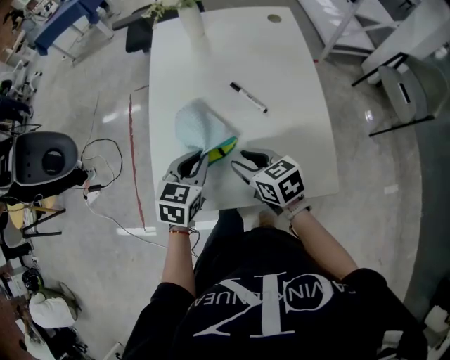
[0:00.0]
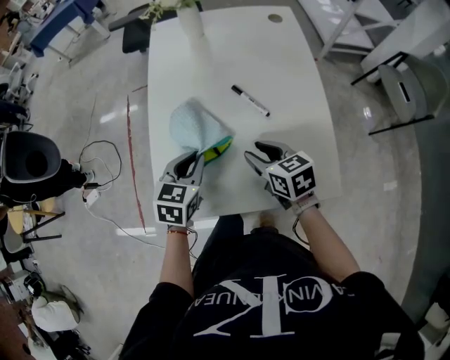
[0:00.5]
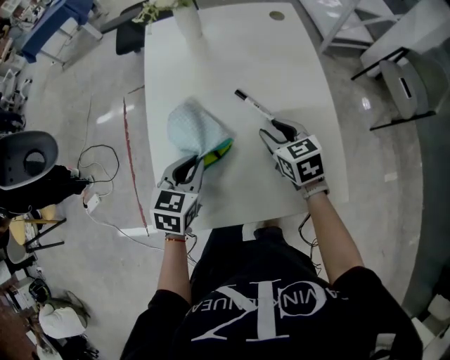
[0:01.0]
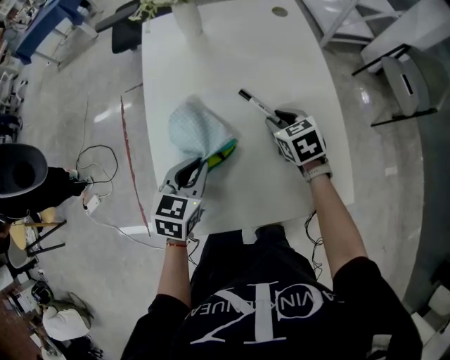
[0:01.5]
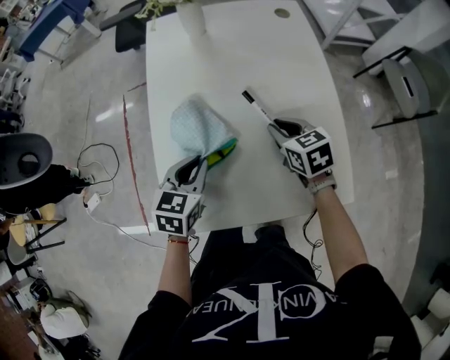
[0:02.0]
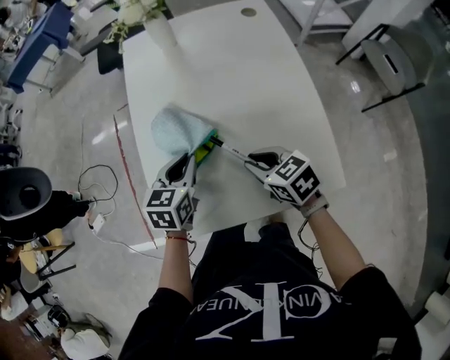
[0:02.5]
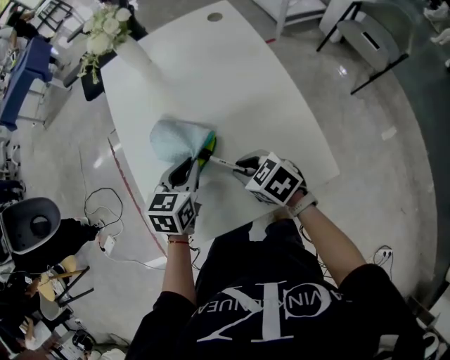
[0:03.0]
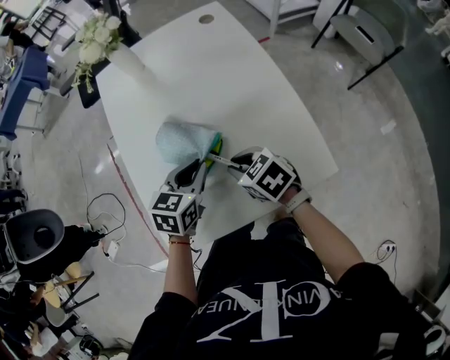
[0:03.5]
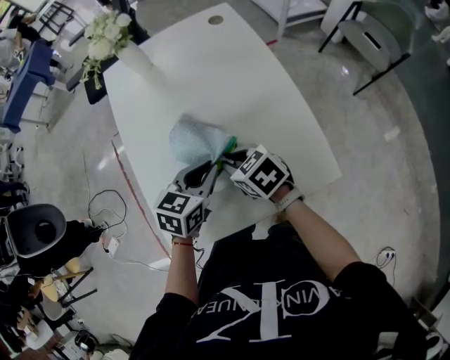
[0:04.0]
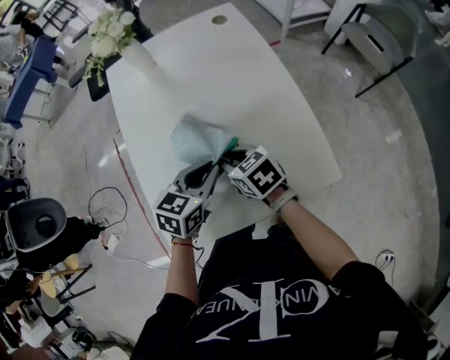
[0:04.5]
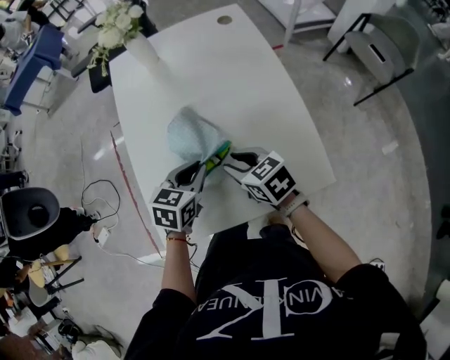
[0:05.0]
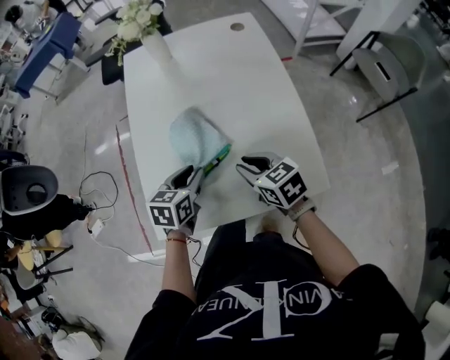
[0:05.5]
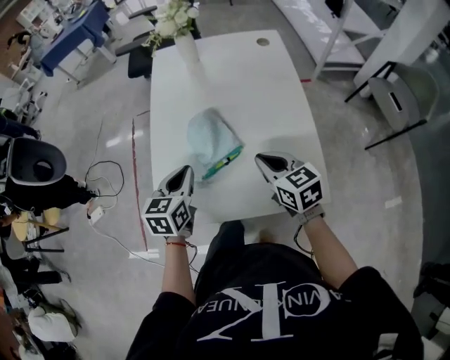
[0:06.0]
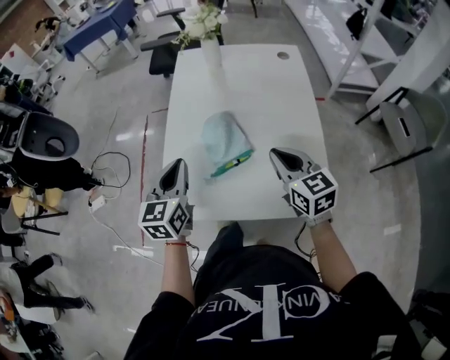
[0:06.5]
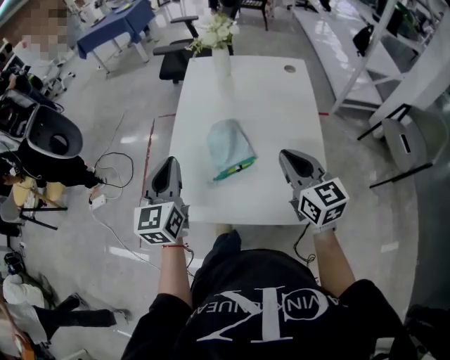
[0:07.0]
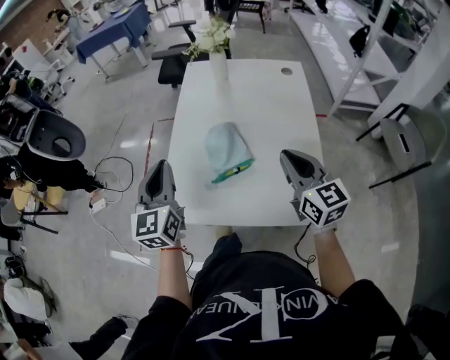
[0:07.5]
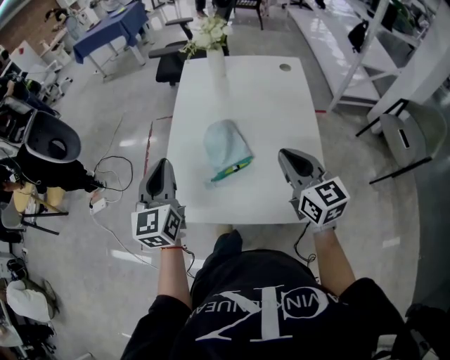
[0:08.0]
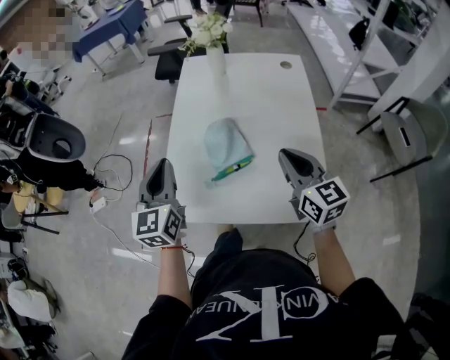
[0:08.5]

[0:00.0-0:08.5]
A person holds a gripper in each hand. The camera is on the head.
0:00.0 to 0:02.0: The left gripper moves roughly 5 cm. The right gripper shifts roughly 15 cm forward and to the right, and closes.
0:02.0 to 0:04.0: The right gripper moves backward and to the left, about 10 cm; the left gripper goes roughly 10 cm to the right, and rotates about 20 degrees.
0:04.0 to 0:06.5: The right gripper goes approximately 15 cm upward and to the right, and swivels roughly 30 degrees. The left gripper is displaced to the left and upward by some 15 cm, and rotates roughly 50 degrees.
0:06.5 to 0:08.5: The left gripper travels upward by approximately 5 cm, while the right gripper changes place by some 5 cm.

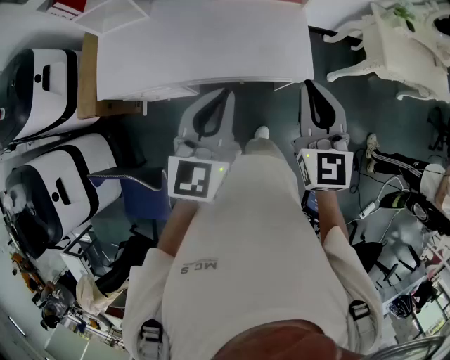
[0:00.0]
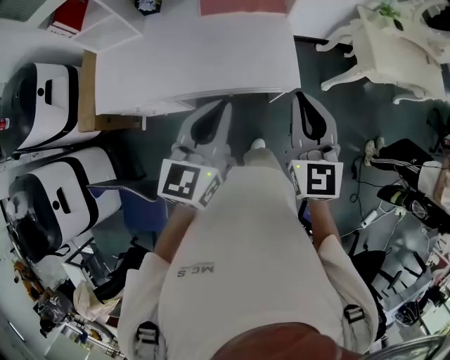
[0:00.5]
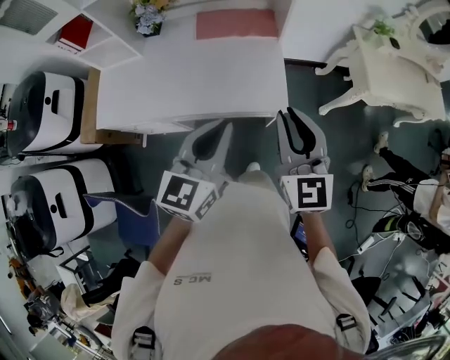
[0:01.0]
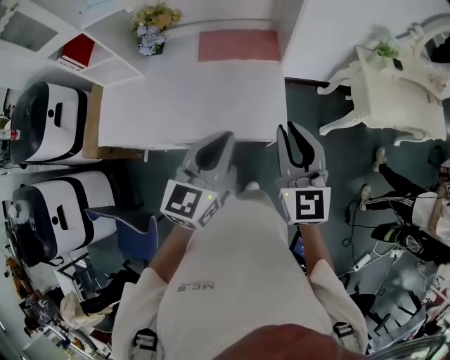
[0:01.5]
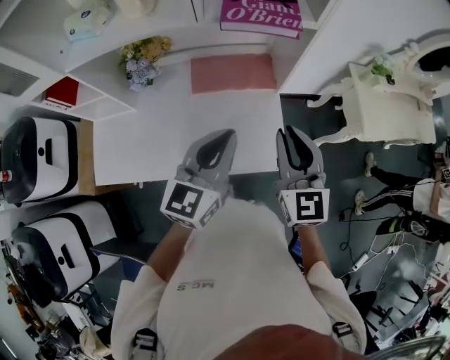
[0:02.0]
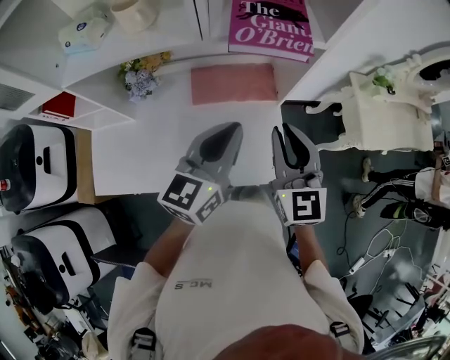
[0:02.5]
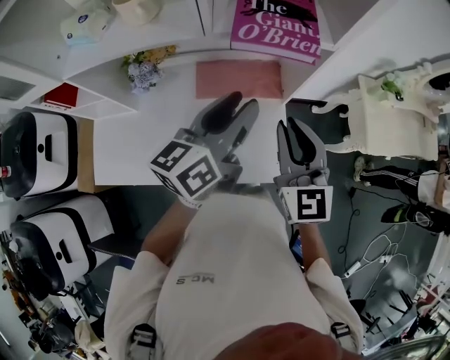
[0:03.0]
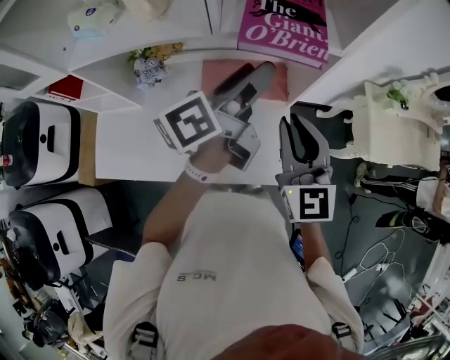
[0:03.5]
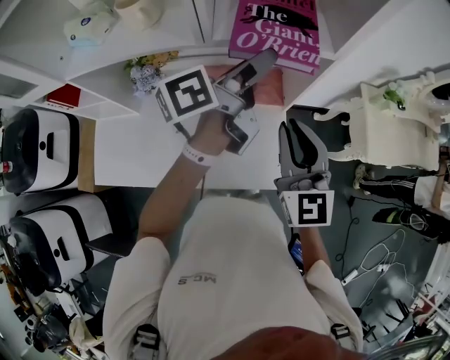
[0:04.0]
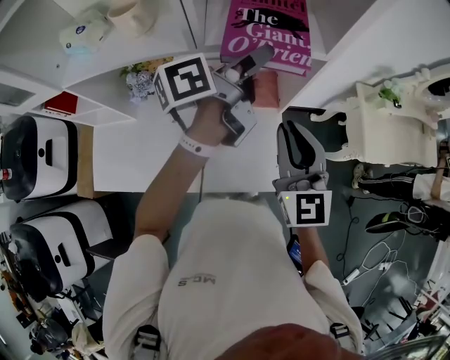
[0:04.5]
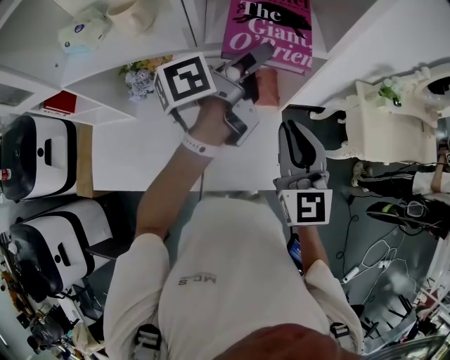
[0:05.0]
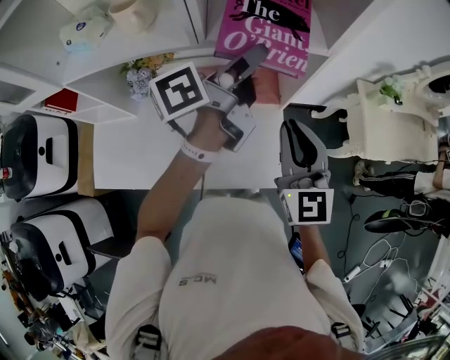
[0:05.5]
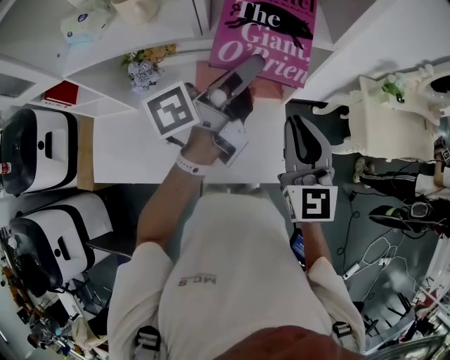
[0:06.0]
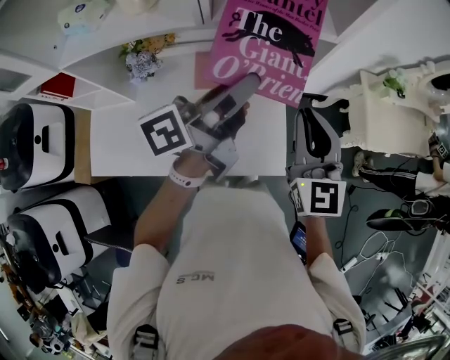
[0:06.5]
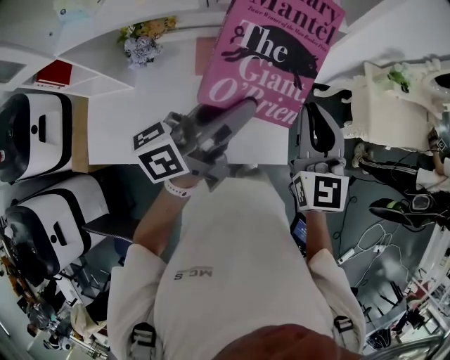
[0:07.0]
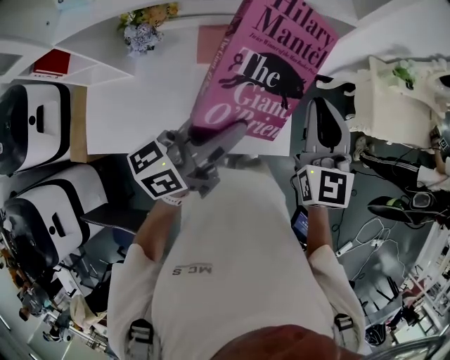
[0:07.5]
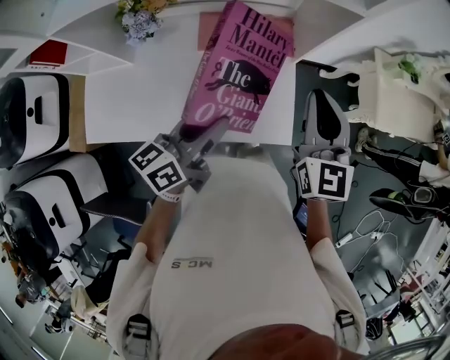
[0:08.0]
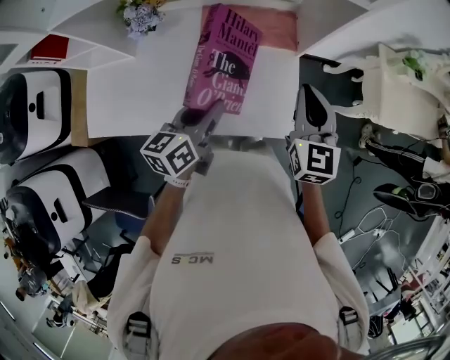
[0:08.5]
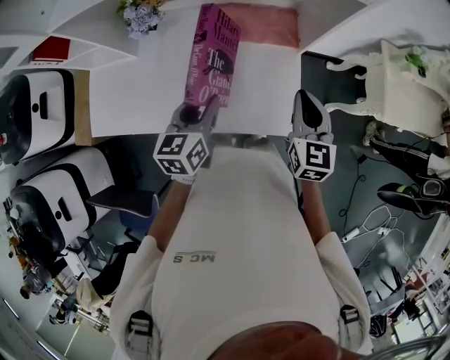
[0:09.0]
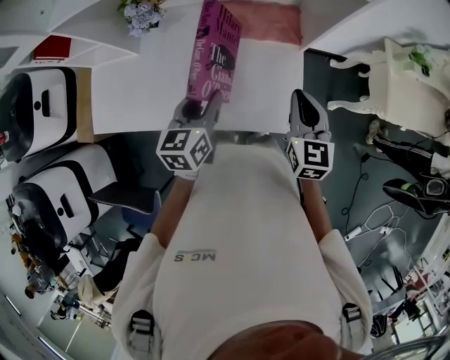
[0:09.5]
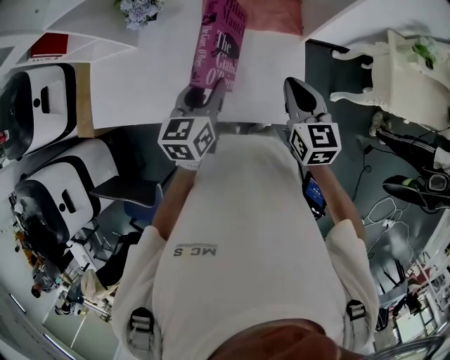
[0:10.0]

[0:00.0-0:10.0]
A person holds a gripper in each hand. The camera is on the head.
0:00.0 to 0:02.0: The two grippers go about 25 cm forward.
0:02.0 to 0:04.0: The left gripper travels forward by approximately 25 cm, rolls counterclockwise, seen from behind, by roughly 50 degrees, and opens; the right gripper is displaced forward by some 10 cm.
0:04.0 to 0:06.0: The left gripper closes up.
0:06.0 to 0:08.0: The left gripper travels backward and downward by approximately 25 cm, and swivels approximately 30 degrees; the right gripper changes place by approximately 5 cm.
0:08.0 to 0:10.0: The left gripper moves downward, some 10 cm, and turns by approximately 40 degrees. Meanwhile the right gripper moves downward, about 15 cm, and rotates roughly 20 degrees.

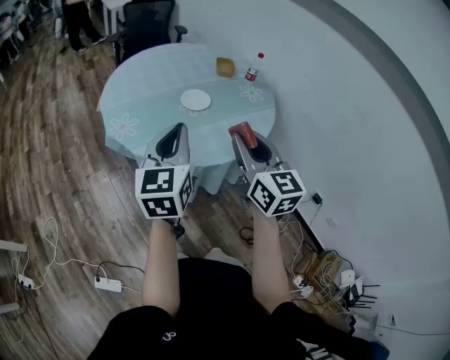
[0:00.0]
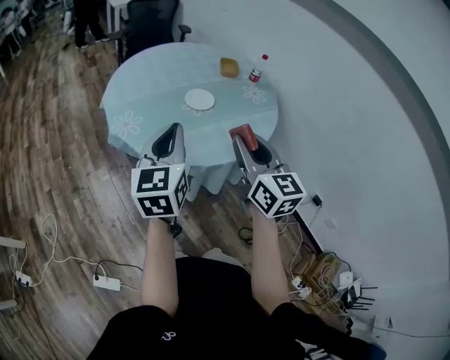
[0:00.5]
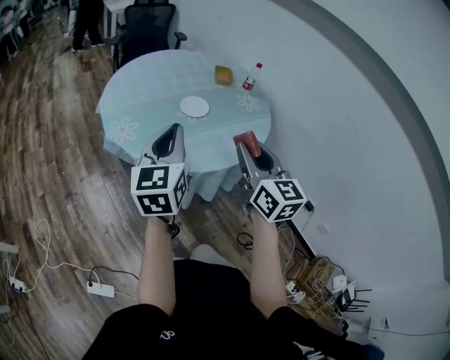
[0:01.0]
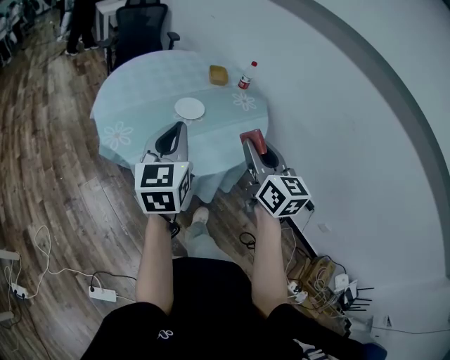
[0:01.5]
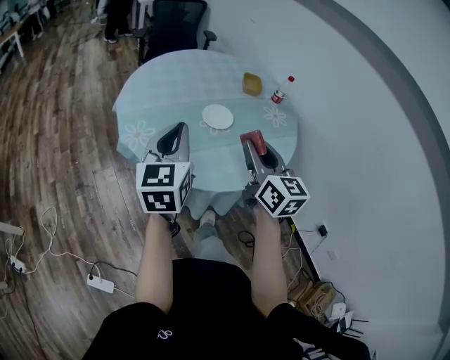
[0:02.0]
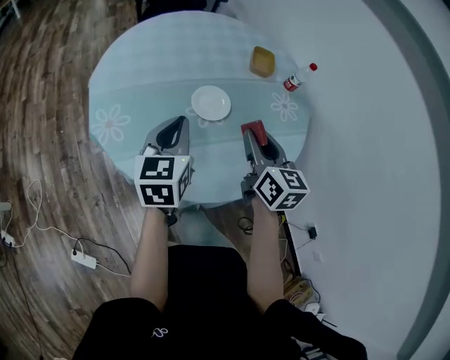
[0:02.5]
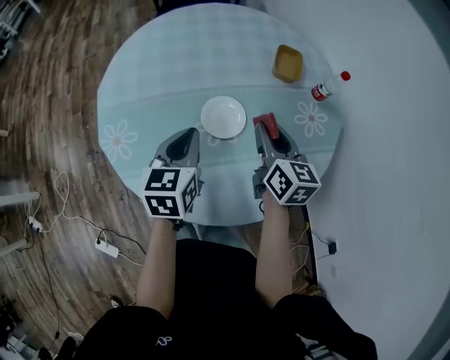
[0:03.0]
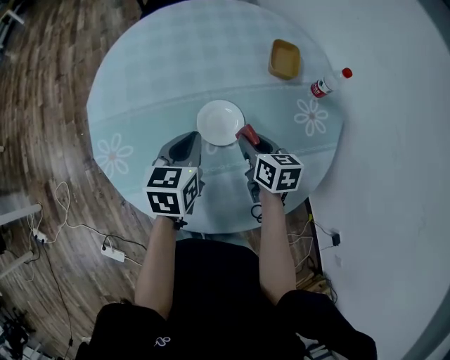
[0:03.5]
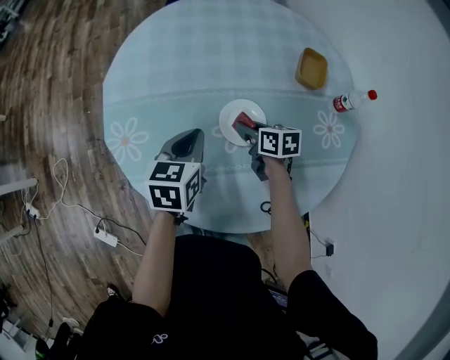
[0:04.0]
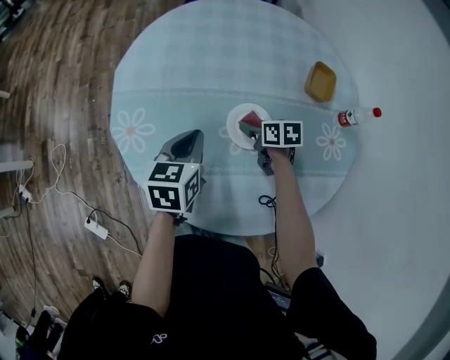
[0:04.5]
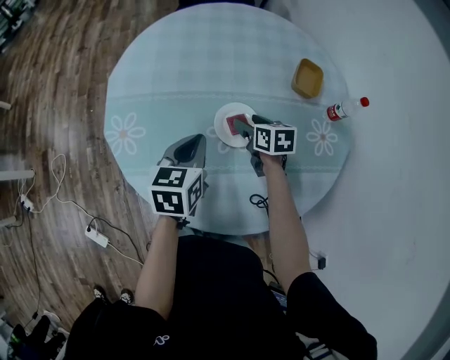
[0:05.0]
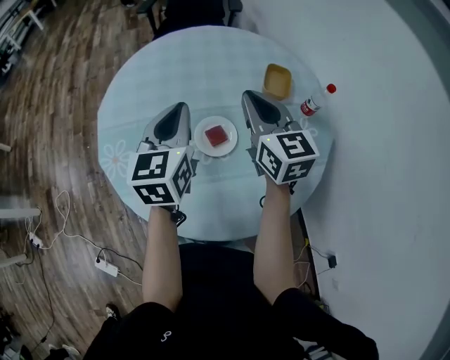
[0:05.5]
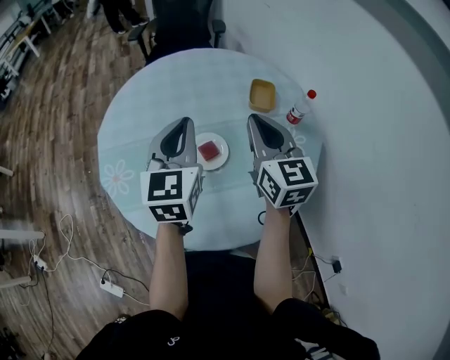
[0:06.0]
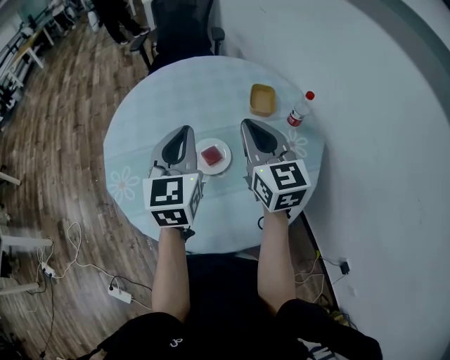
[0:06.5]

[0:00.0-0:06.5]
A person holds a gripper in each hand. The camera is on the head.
0:00.0 to 0:02.0: The right gripper shifts roughly 15 cm forward. Meanwhile the left gripper moves forward and to the left, some 10 cm.
0:02.0 to 0:04.5: The left gripper shifts roughly 35 cm forward and downward, and changes its angle by about 30 degrees. The right gripper heads forward and downward, covering about 50 cm, points its fingers roughly 50 degrees further downward, and opens its fingers.
0:04.5 to 0:06.5: The right gripper is displaced upward by some 35 cm, angles its fingers upward, by approximately 50 degrees, and closes. The left gripper is displaced upward and to the right by some 25 cm, and changes its angle by some 30 degrees.

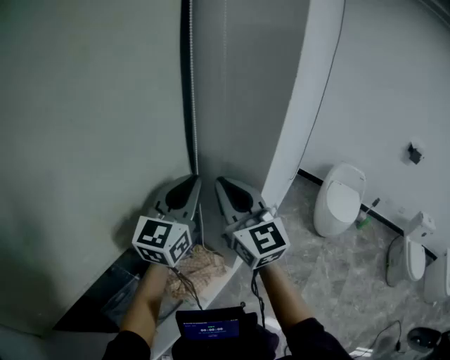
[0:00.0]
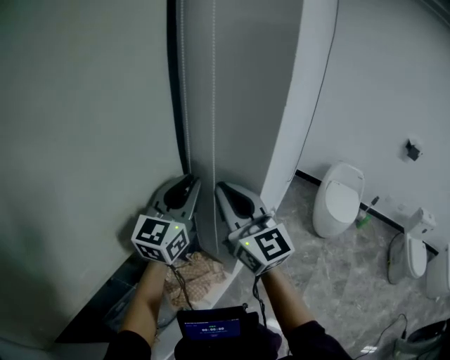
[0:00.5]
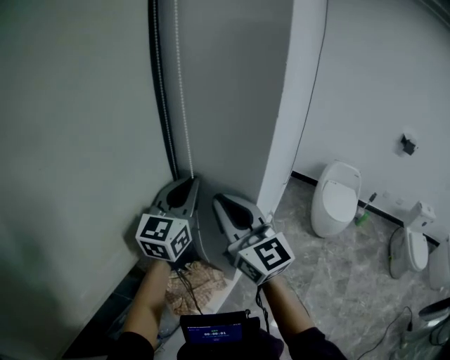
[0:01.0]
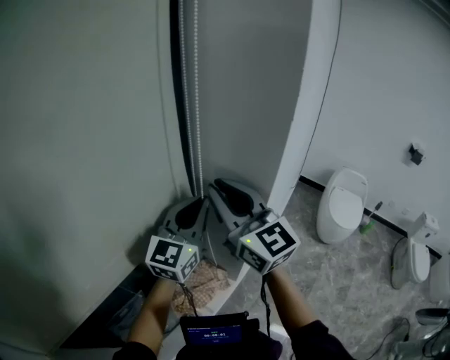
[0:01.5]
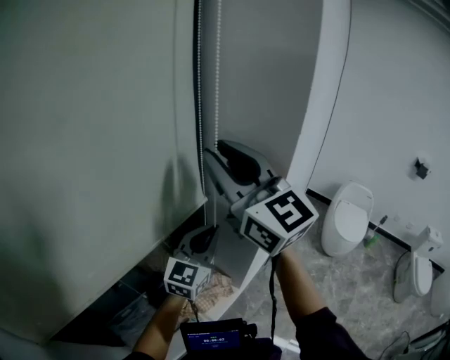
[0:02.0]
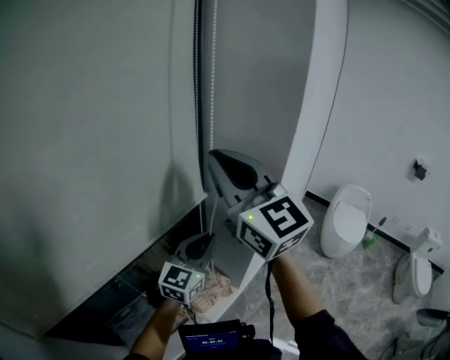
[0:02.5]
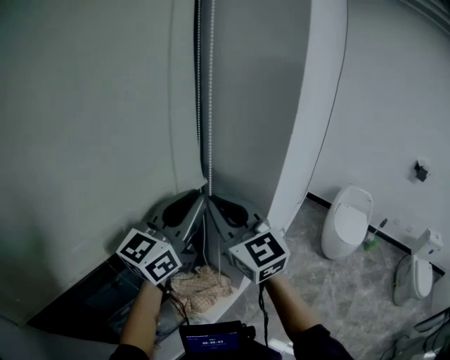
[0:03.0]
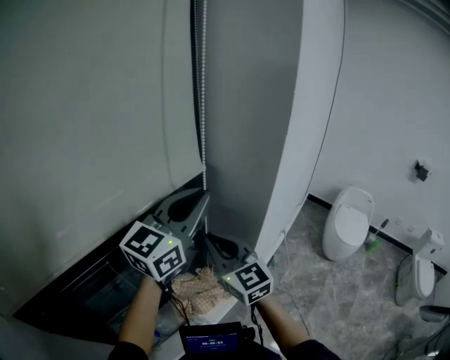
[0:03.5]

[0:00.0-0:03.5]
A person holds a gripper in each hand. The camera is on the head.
0:00.0 to 0:02.0: The left gripper goes about 10 cm downward. The right gripper moves upward, roughly 15 cm.
0:02.0 to 0:03.5: The left gripper is displaced upward by about 15 cm. The right gripper travels downward by about 25 cm.
